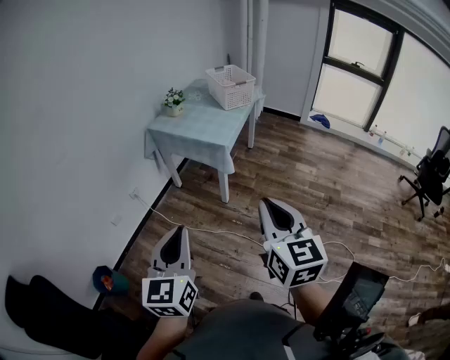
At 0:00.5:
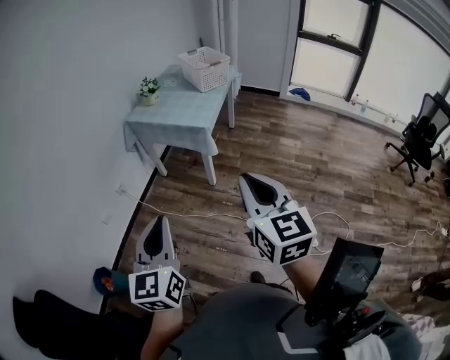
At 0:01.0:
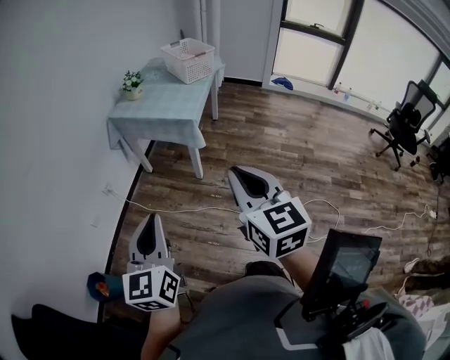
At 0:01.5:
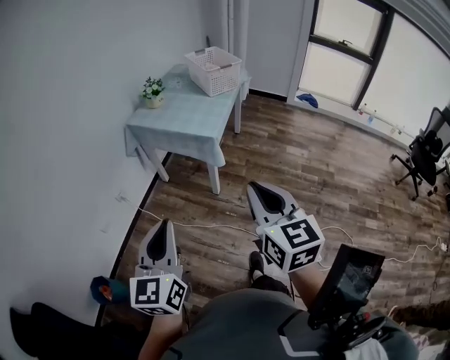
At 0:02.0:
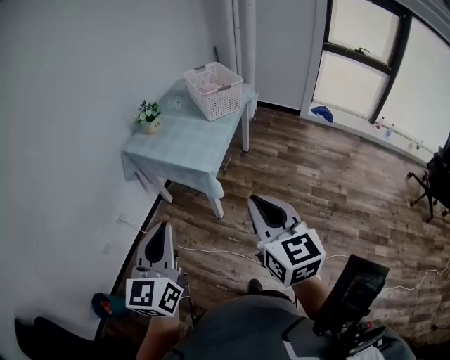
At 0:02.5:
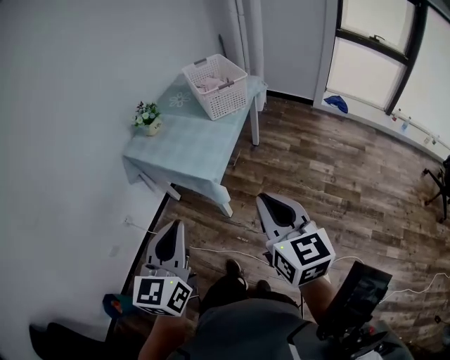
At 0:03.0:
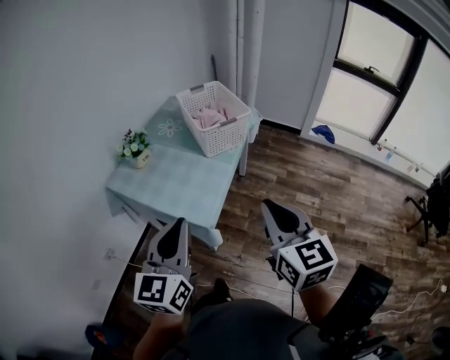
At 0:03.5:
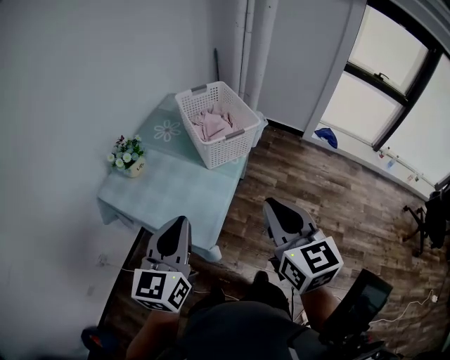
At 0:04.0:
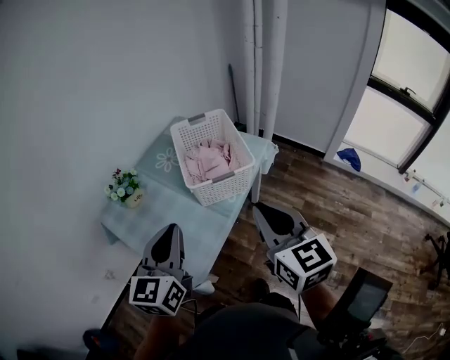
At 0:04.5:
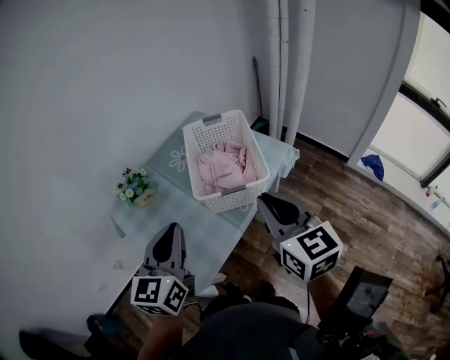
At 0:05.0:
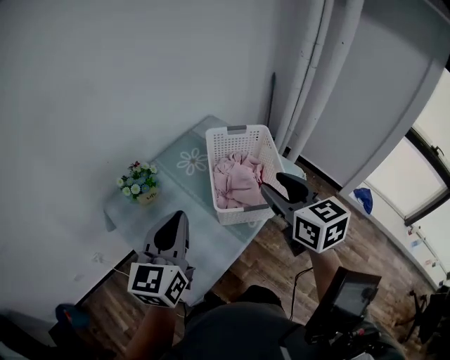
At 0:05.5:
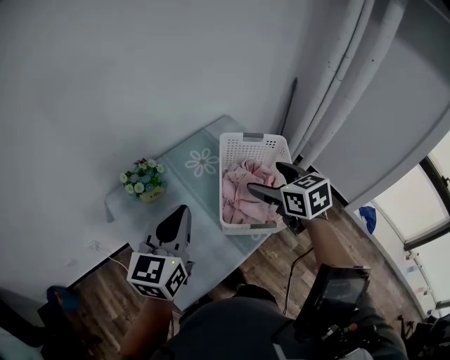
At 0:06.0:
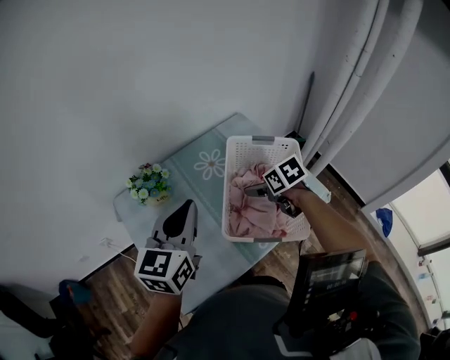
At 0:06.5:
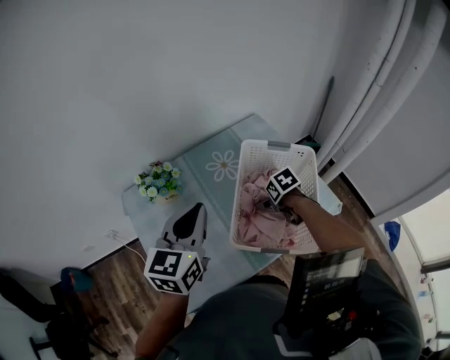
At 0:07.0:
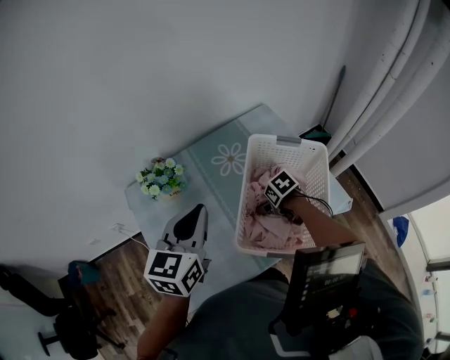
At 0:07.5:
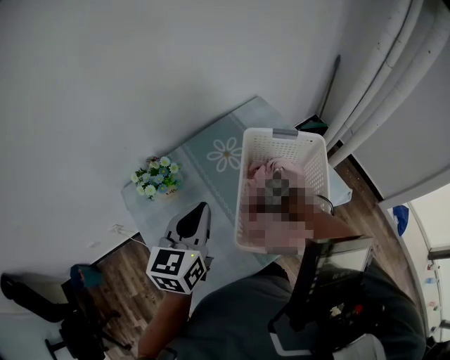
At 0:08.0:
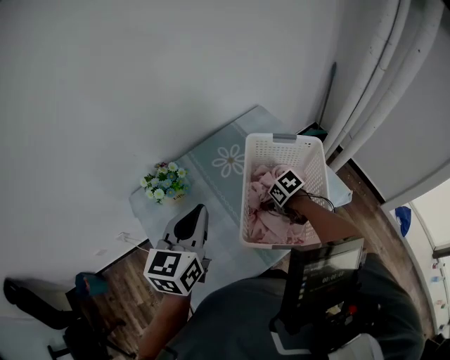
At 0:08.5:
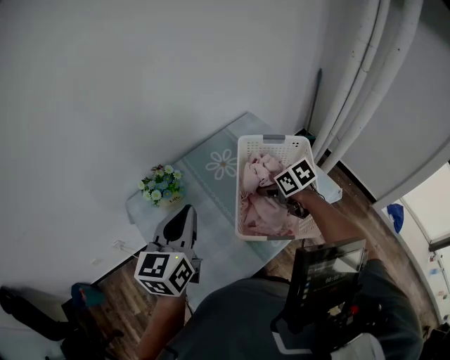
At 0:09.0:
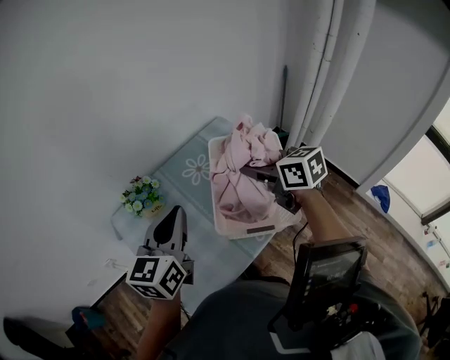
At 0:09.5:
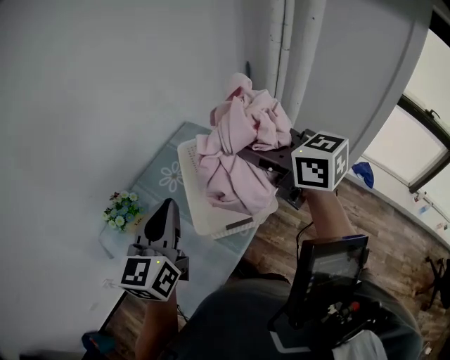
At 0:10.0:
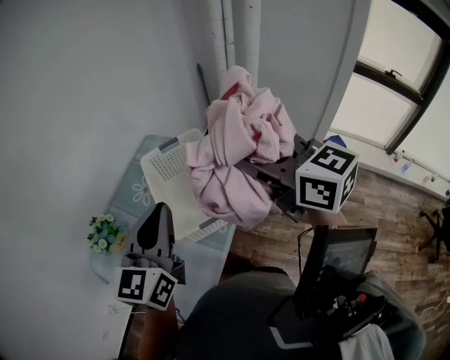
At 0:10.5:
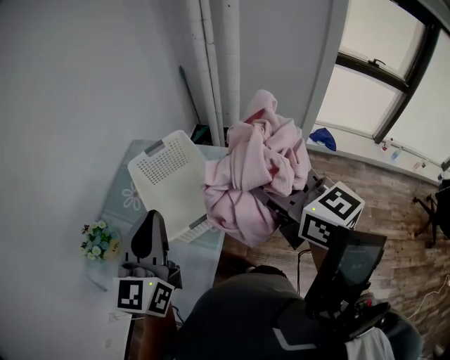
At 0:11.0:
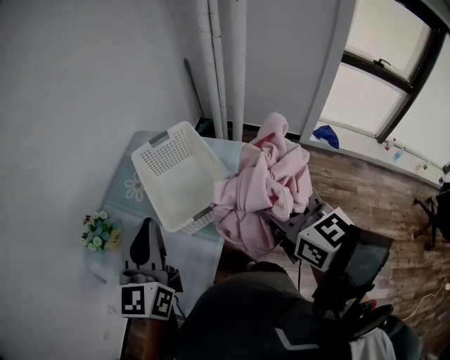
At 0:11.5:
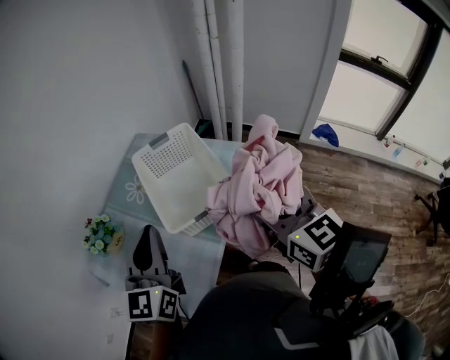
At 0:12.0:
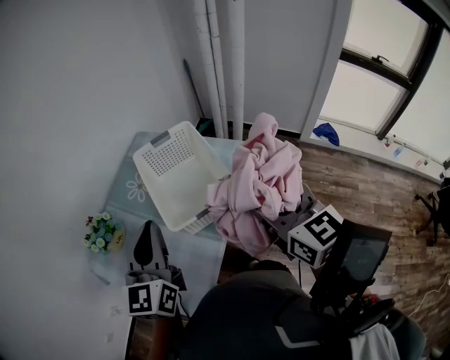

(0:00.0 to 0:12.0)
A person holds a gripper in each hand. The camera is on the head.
0:00.0 - 0:02.0: The two grippers go roughly 25 cm forward.
0:02.0 - 0:04.0: The pair of grippers is taken forward, about 50 cm.
0:04.0 - 0:06.0: The left gripper shifts by some 25 cm. The right gripper ends up roughly 50 cm from where it was, points its fingers roughly 40 degrees further downward, and opens its fingers.
0:06.0 - 0:08.0: The right gripper moves downward, approximately 15 cm, and closes up.
0:08.0 - 0:10.0: The left gripper changes place by approximately 20 cm, and swivels some 30 degrees; the right gripper travels upward by some 50 cm, and tips its fingers upward by approximately 60 degrees.
0:10.0 - 0:12.0: The left gripper changes place by some 5 cm; the right gripper heads backward and downward, covering approximately 15 cm.

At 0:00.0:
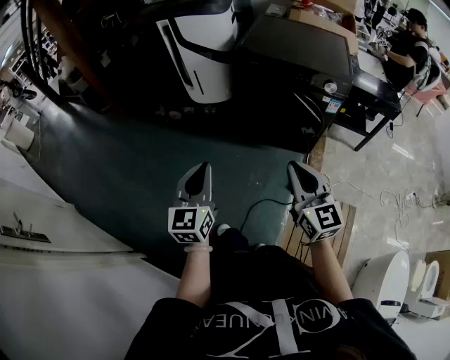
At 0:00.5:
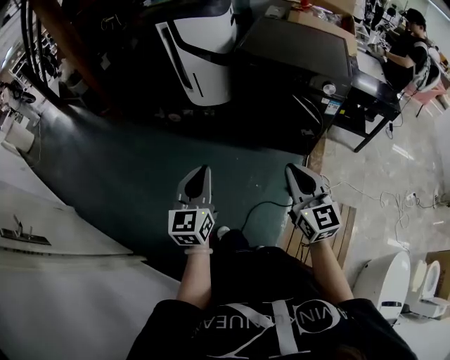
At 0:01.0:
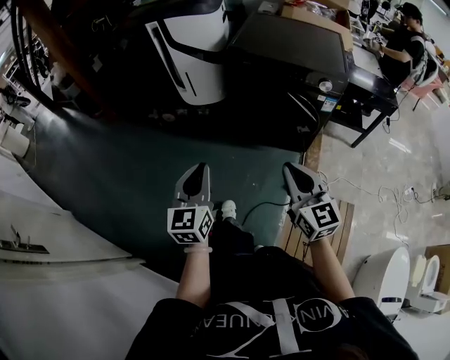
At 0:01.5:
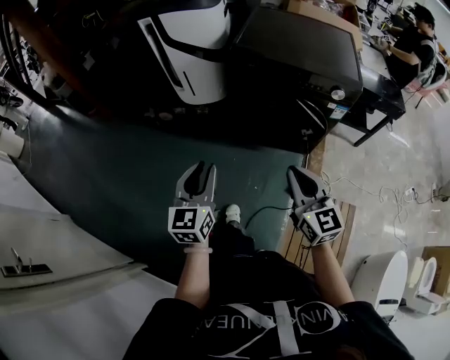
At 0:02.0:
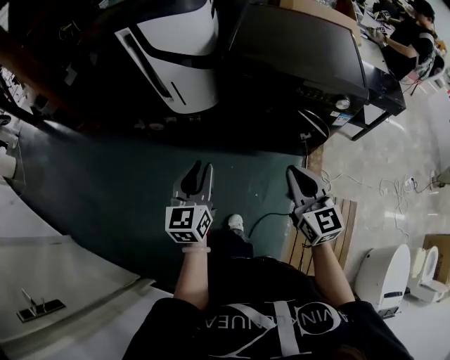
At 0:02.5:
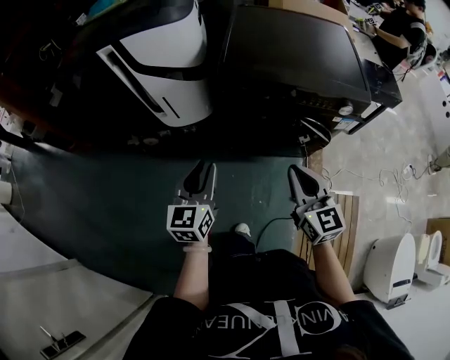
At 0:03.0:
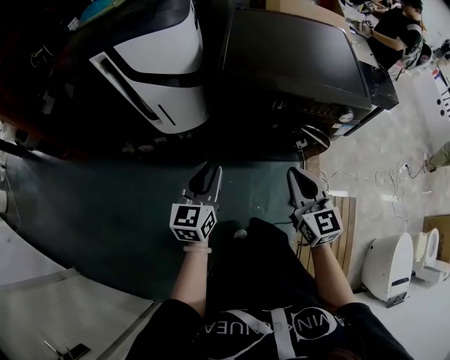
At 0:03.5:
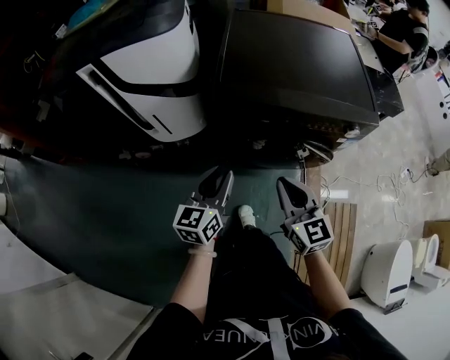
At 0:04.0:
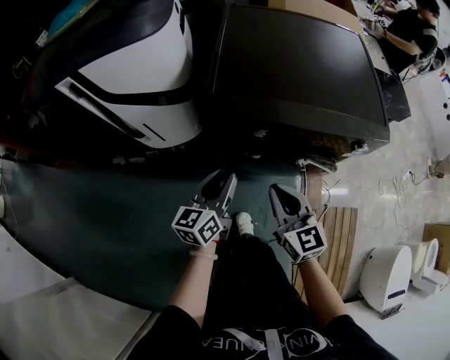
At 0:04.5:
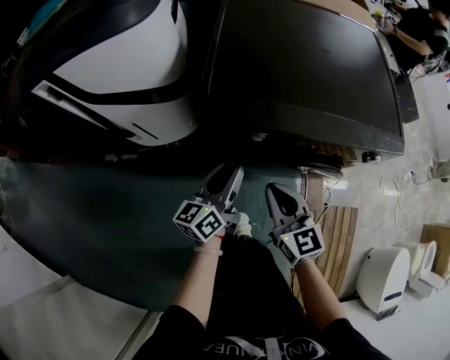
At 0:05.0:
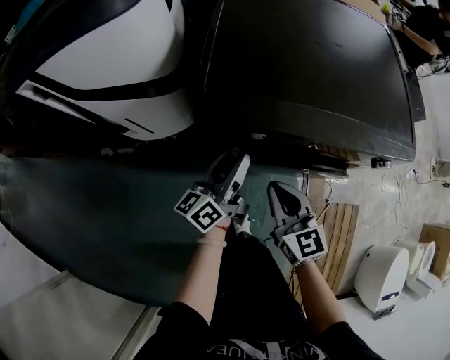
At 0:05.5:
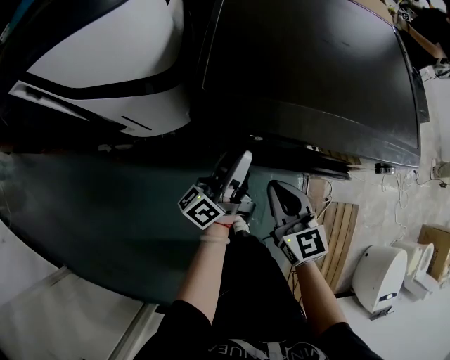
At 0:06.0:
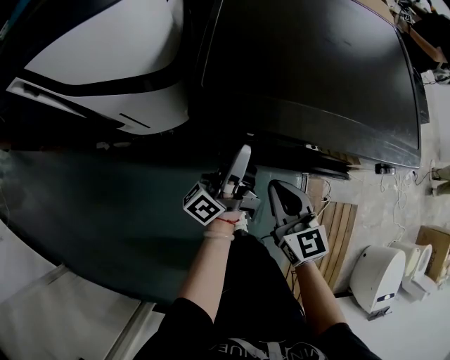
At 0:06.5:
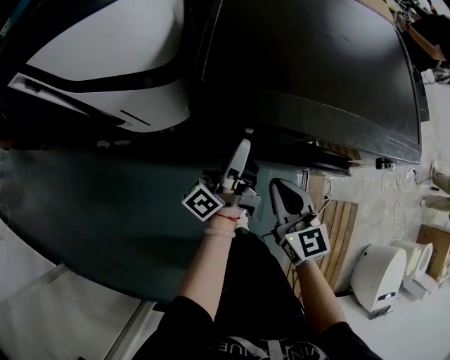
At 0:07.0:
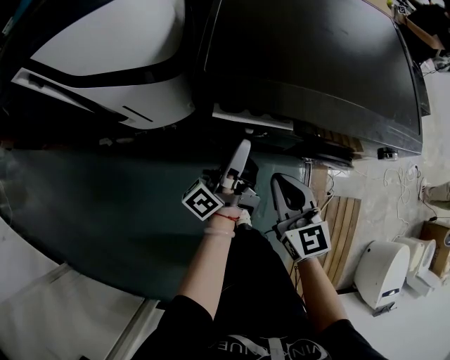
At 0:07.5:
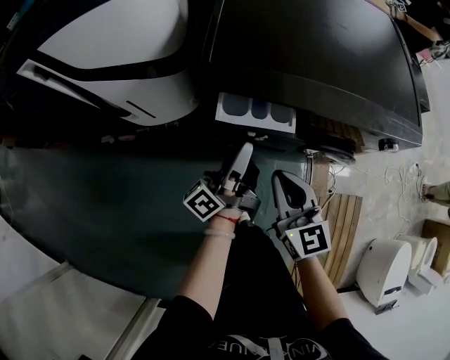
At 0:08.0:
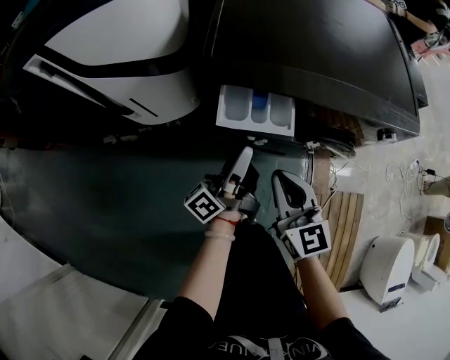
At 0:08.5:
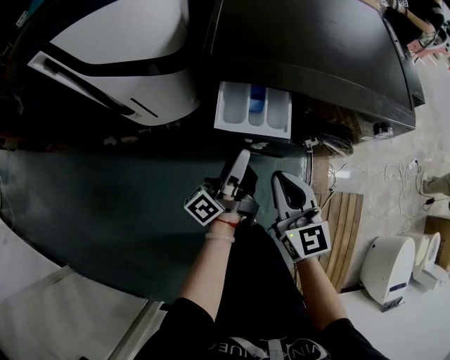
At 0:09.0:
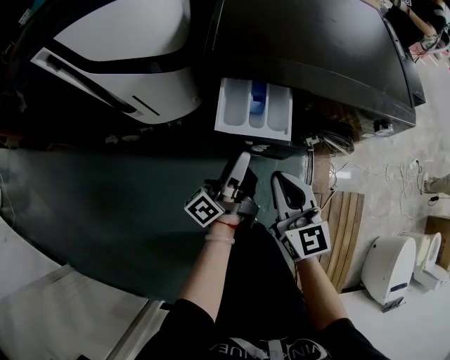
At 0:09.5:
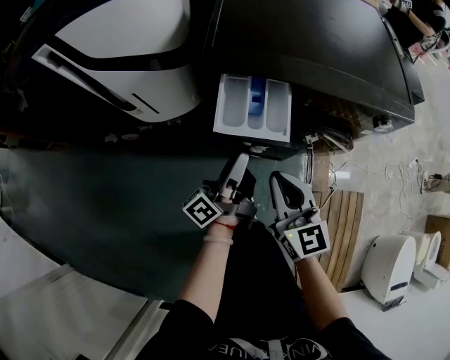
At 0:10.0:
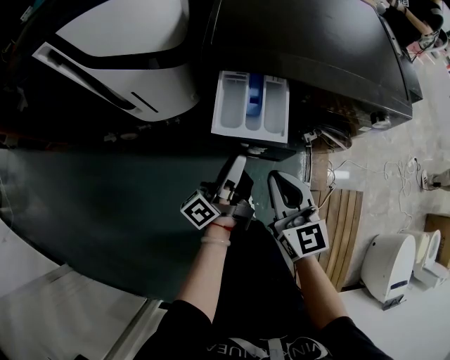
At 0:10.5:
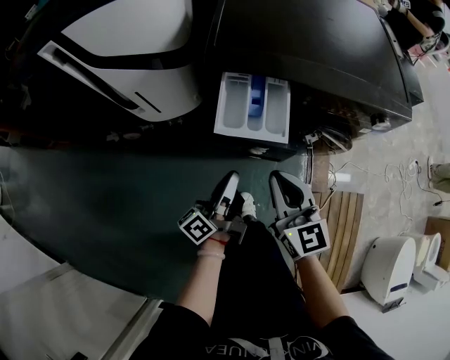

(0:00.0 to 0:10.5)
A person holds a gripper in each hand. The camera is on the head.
0:00.0 - 0:02.0: Both grippers move forward, some 25 cm. The left gripper opens.
0:02.0 - 0:04.0: The left gripper heads forward, covering approximately 25 cm, and turns by some 30 degrees. The right gripper moves forward and downward, approximately 25 cm.
0:04.0 - 0:06.5: The right gripper travels downward and forward by about 10 cm. The left gripper heads forward, covering roughly 10 cm, and points its fingers approximately 30 degrees further upward.
0:06.5 - 0:08.5: The grippers both shift backward by some 10 cm.
0:08.5 - 0:10.5: The left gripper travels backward by roughly 10 cm, and closes.

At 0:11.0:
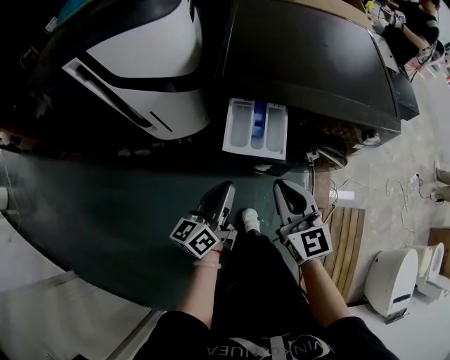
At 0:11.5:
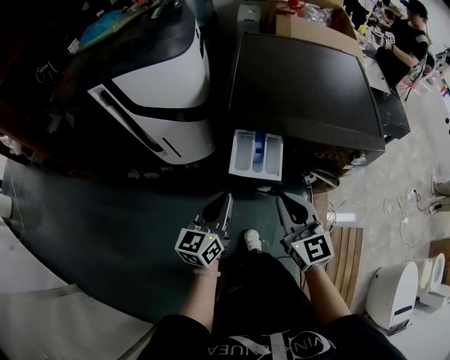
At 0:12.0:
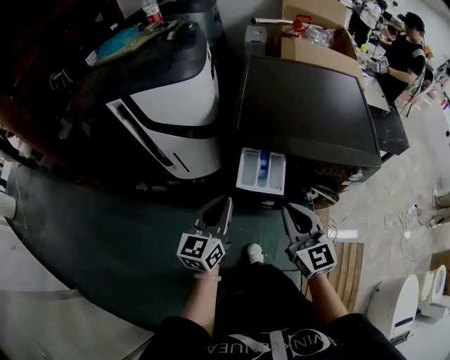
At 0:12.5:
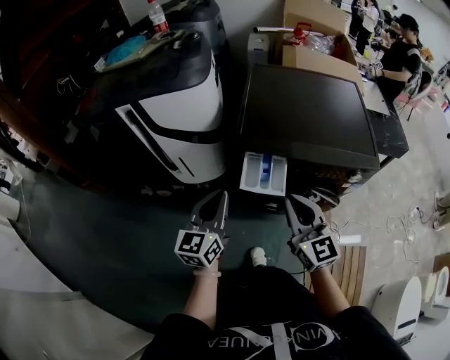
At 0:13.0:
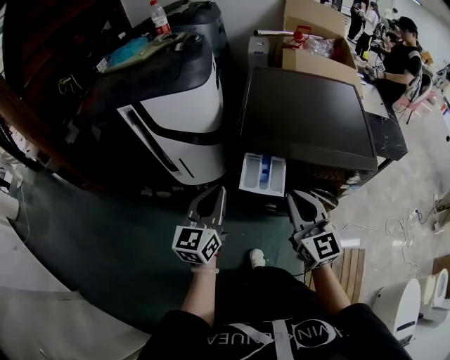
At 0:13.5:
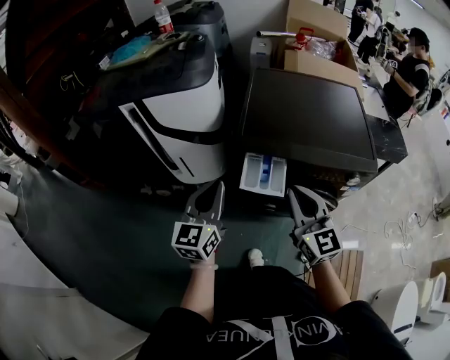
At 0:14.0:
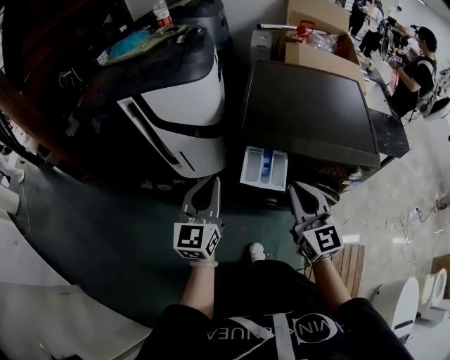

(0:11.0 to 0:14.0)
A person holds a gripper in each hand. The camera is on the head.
0:11.0 - 0:12.5: The two grippers go roughly 15 cm upward. The left gripper changes its angle by some 30 degrees.
0:12.5 - 0:14.0: The grippers move only a little.

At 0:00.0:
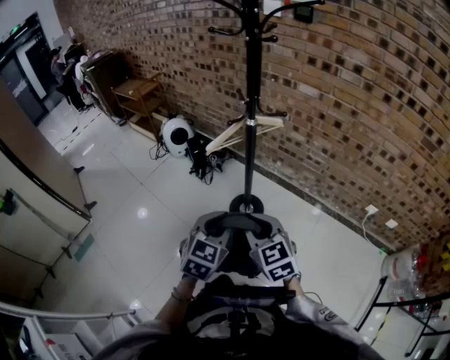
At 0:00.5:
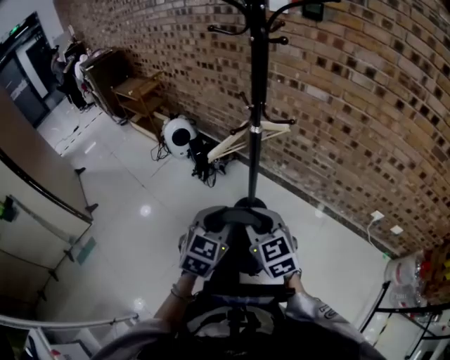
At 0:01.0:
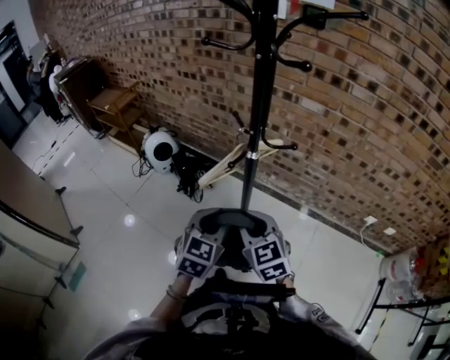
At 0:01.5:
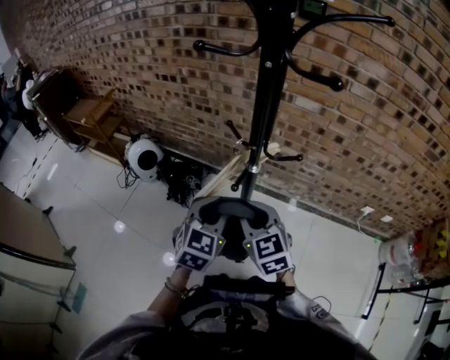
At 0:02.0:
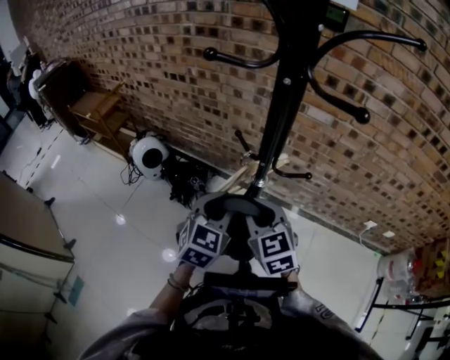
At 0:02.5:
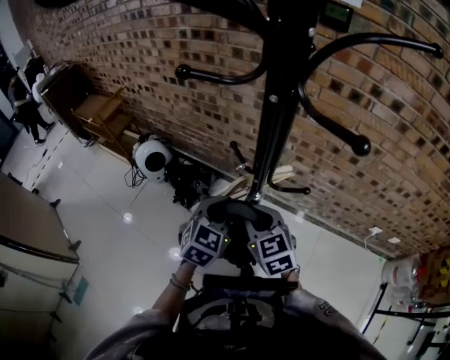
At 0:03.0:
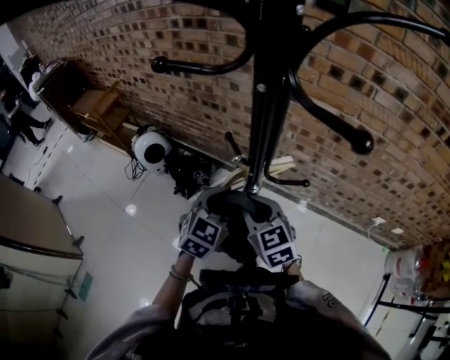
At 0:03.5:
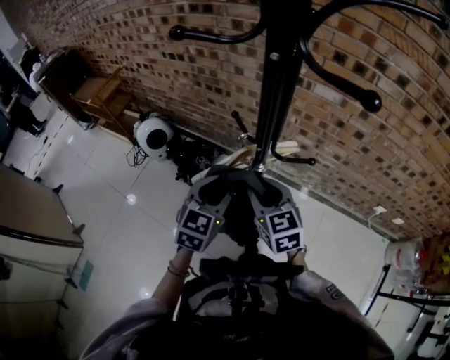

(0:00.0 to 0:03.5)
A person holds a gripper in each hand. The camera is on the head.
0:00.0 - 0:02.0: Both grippers move forward, about 35 cm.
0:02.0 - 0:03.5: The right gripper ends up approximately 5 cm from where it was.
